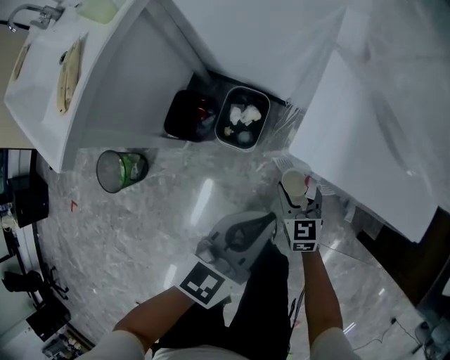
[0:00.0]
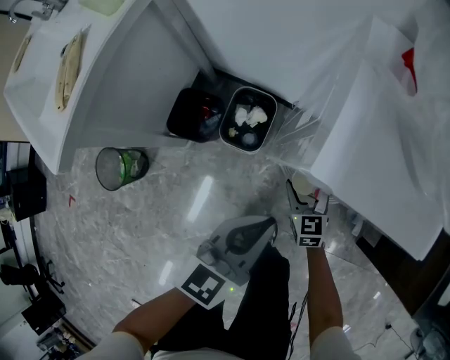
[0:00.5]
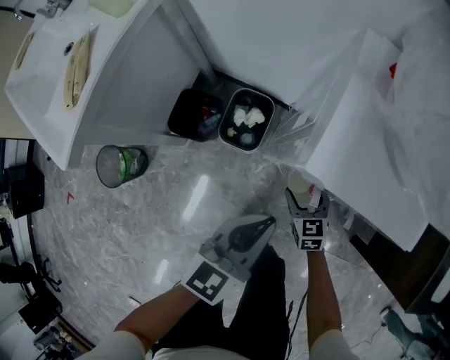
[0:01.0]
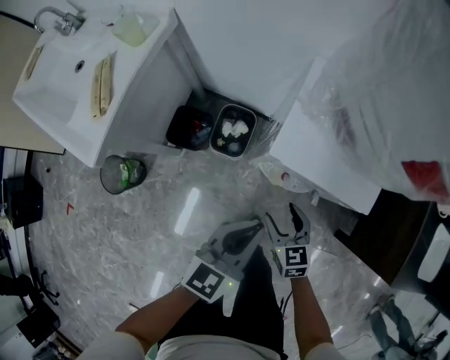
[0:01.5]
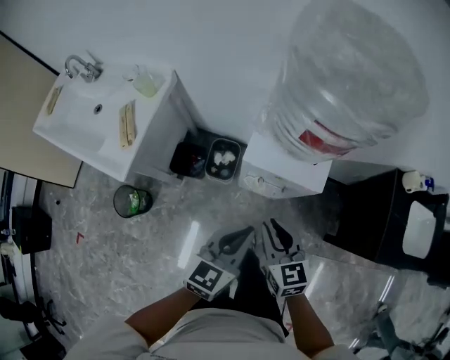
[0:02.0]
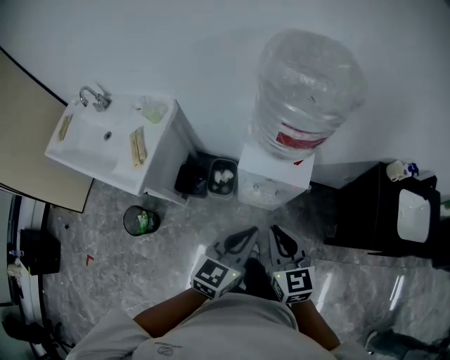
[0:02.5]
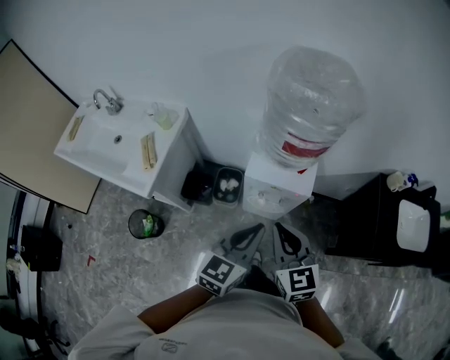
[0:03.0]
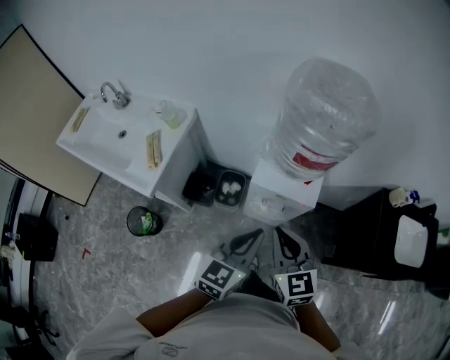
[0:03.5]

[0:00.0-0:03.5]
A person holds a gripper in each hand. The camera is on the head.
0:00.0 to 0:02.0: The right gripper heads upward, covering roughly 40 cm, and closes its fingers. The left gripper moves upward, some 25 cm.
0:02.0 to 0:03.5: Both grippers move upward, approximately 15 cm.

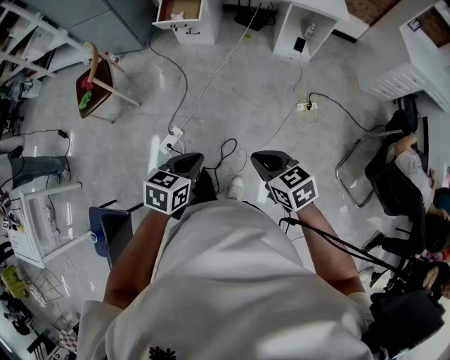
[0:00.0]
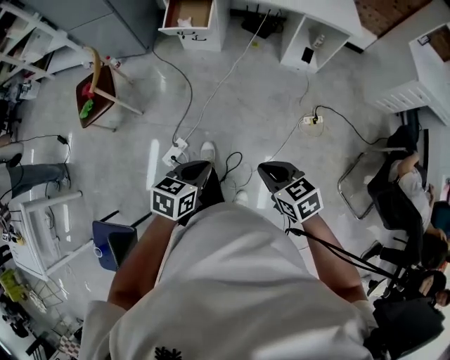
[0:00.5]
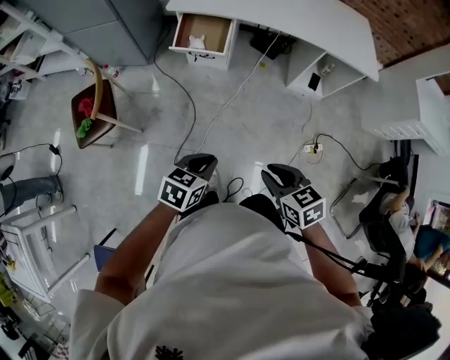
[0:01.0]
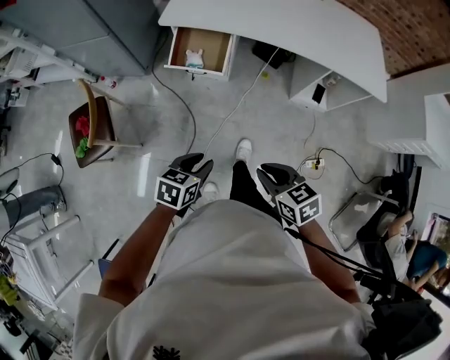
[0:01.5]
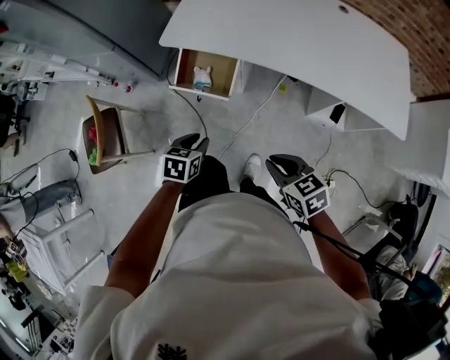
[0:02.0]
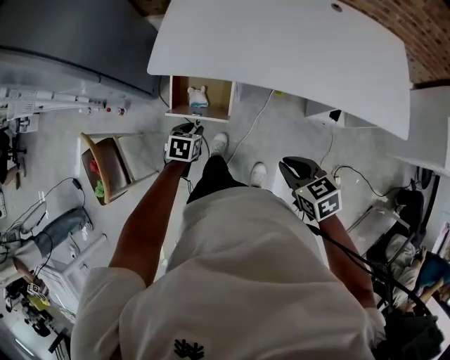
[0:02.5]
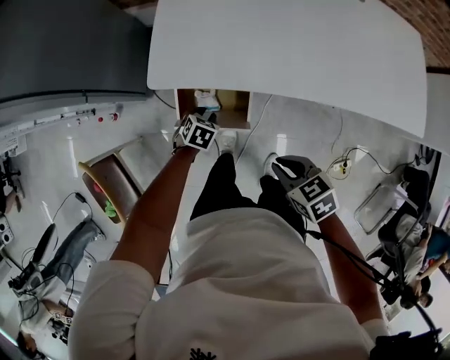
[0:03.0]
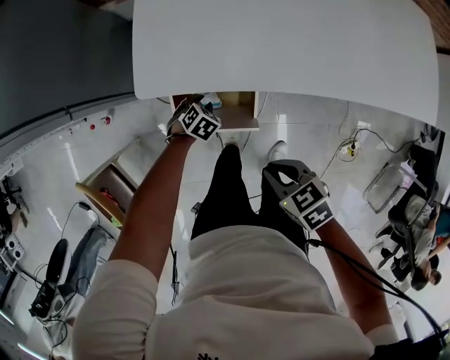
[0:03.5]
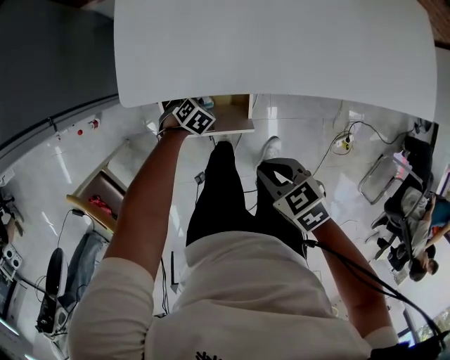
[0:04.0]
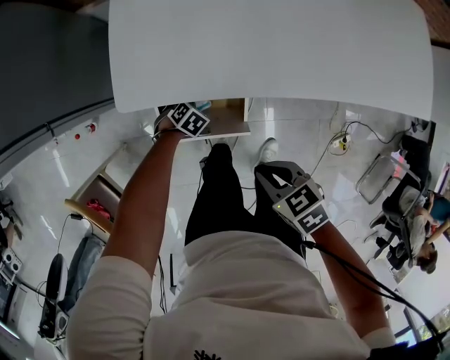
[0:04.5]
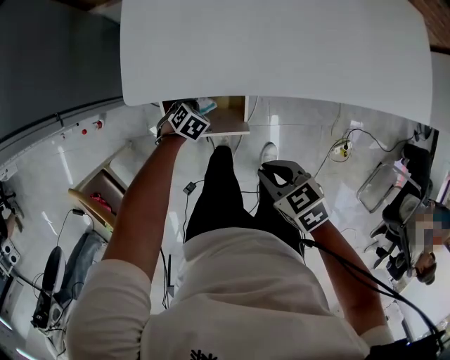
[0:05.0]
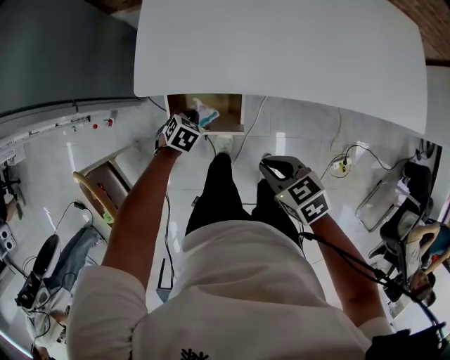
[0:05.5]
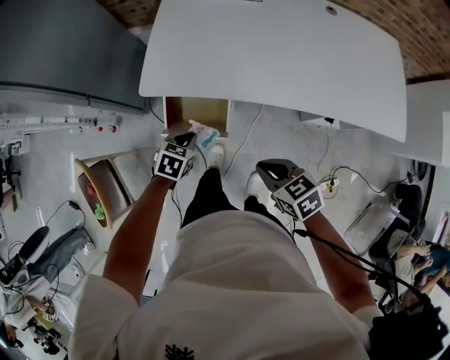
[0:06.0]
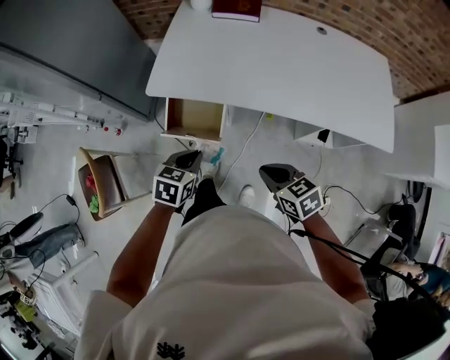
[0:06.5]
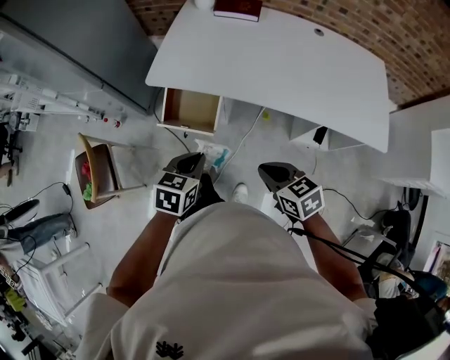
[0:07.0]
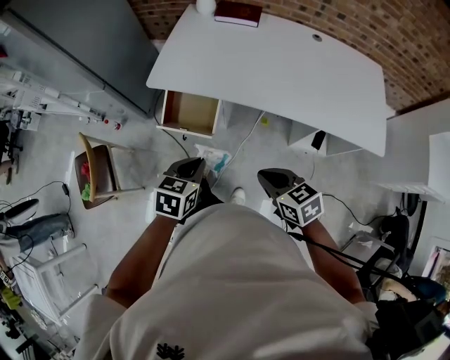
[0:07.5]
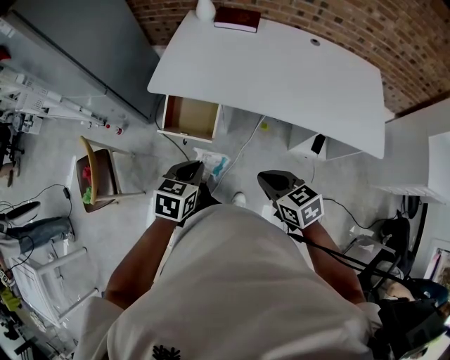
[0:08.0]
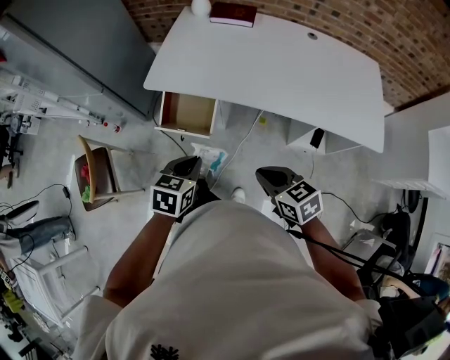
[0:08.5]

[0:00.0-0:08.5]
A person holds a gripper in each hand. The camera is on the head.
0:00.0 to 0:02.0: The pair of grippers is taken forward, about 70 cm. The left gripper opens its fingers.
0:02.0 to 0:04.0: The left gripper moves roughly 50 cm, and rotates around the line of its fingers by roughly 50 degrees, clockwise from behind. The right gripper ends up some 35 cm from where it was, and changes its angle by roughly 20 degrees.
0:04.0 to 0:06.5: The right gripper changes place by approximately 30 cm, and turns by some 20 degrees, while the left gripper travels upward by about 40 cm, turns by roughly 40 degrees, and closes.
0:06.5 to 0:08.5: The left gripper is displaced backward and upward by some 10 cm; the right gripper moves backward, about 10 cm.

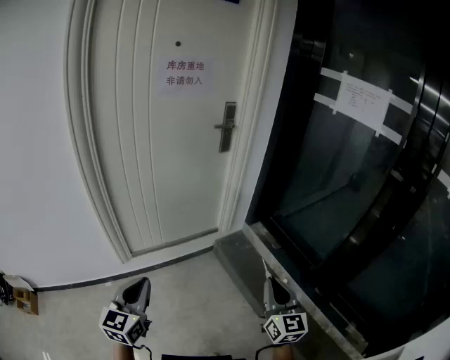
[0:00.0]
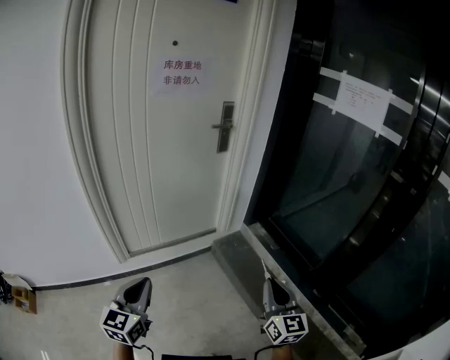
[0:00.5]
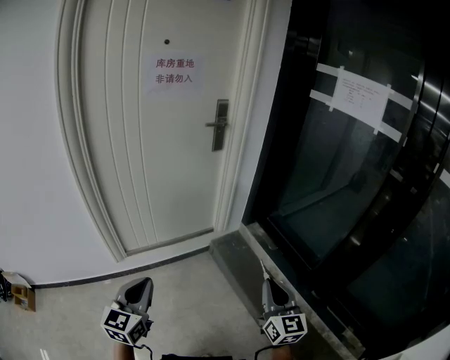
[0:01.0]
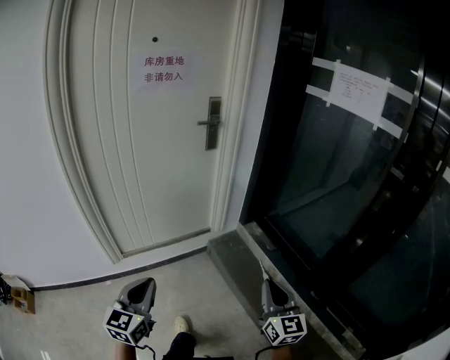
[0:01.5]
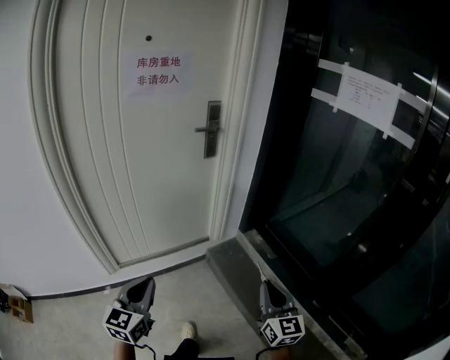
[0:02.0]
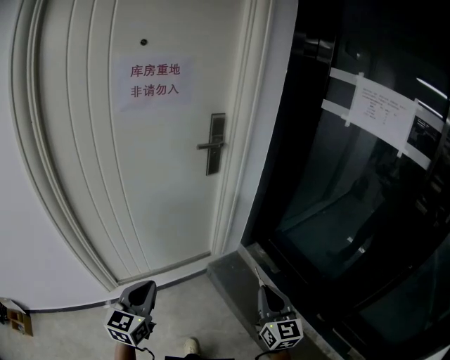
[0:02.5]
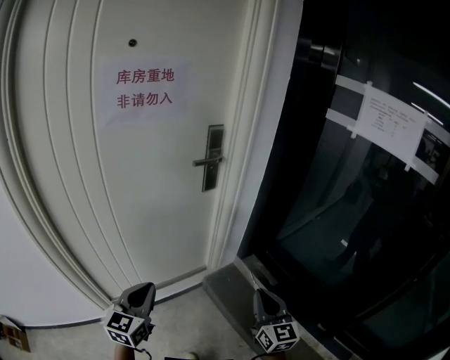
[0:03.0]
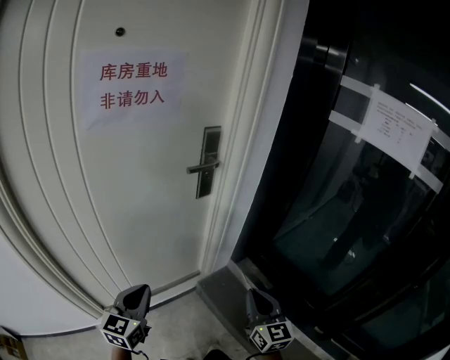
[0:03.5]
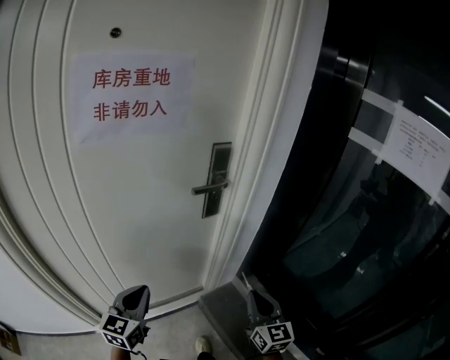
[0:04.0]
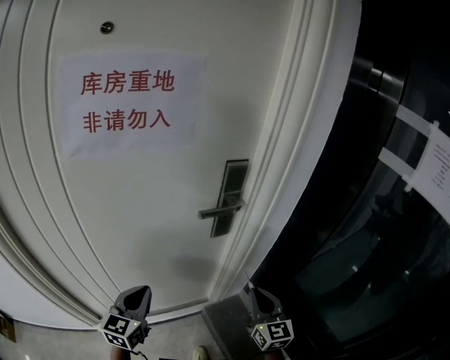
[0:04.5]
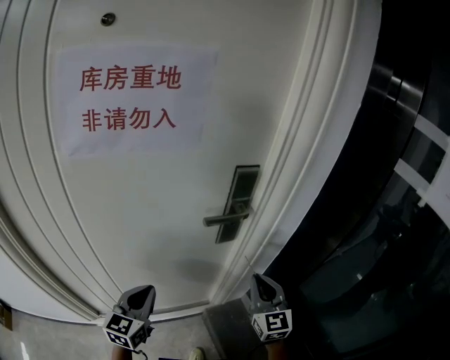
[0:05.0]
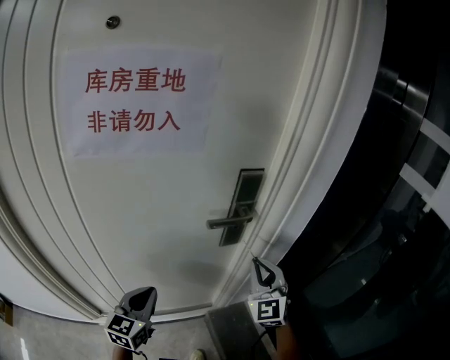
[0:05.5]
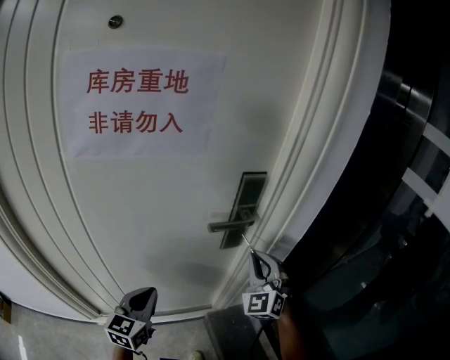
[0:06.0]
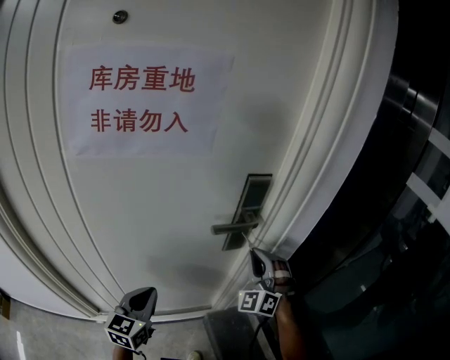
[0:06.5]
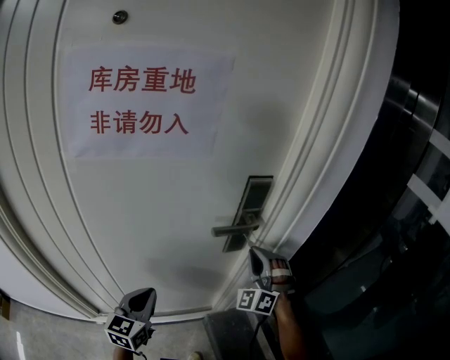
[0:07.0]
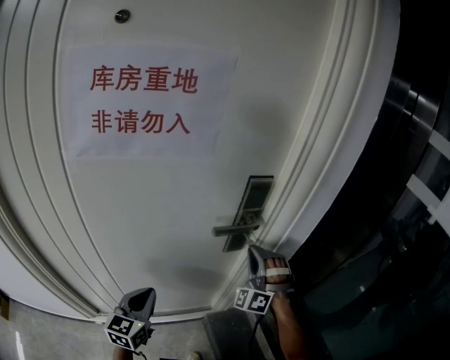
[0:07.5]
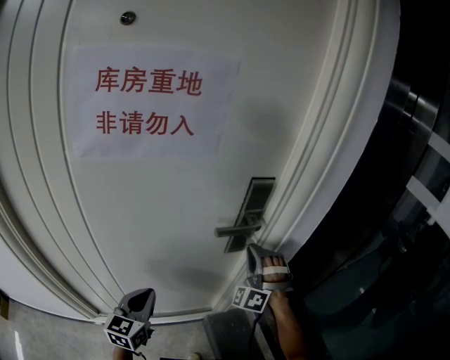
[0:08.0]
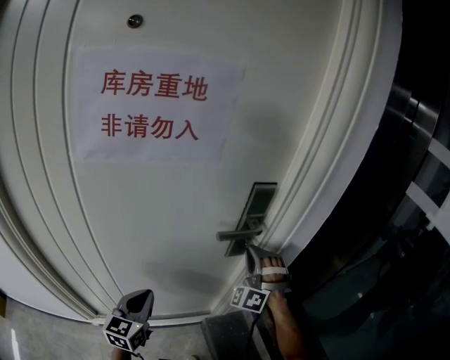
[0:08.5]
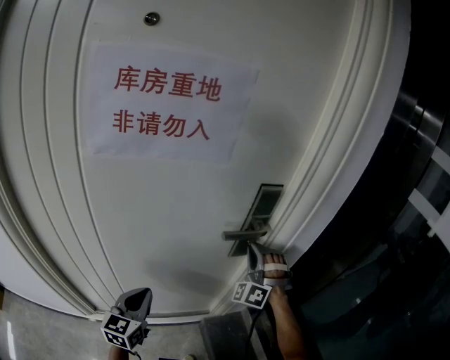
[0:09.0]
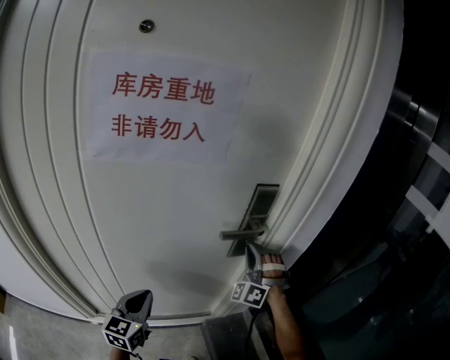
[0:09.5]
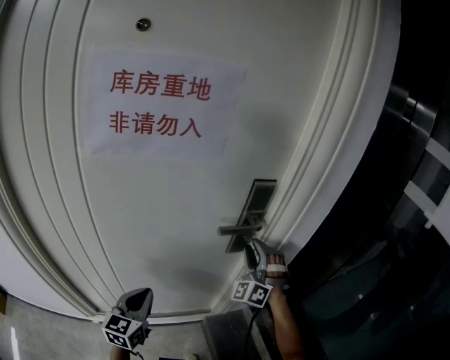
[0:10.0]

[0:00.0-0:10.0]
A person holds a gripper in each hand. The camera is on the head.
0:00.0 to 0:02.0: Both grippers travel together forward and to the right, some 15 cm.
0:02.0 to 0:04.0: The two grippers go roughly 35 cm forward.
0:04.0 to 0:06.0: The right gripper travels forward by some 25 cm, and rotates around the line of its fingers by approximately 50 degrees, counterclockwise from behind; the left gripper travels forward by approximately 10 cm.
0:06.0 to 0:08.0: The right gripper moves about 5 cm, and swivels some 40 degrees.
0:08.0 to 0:10.0: The right gripper opens.

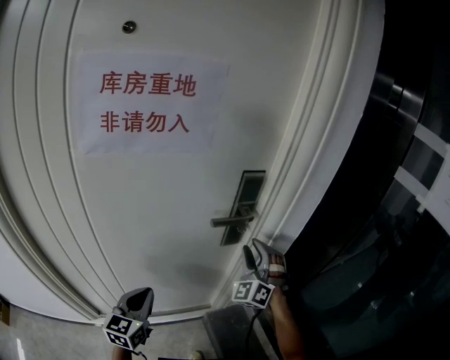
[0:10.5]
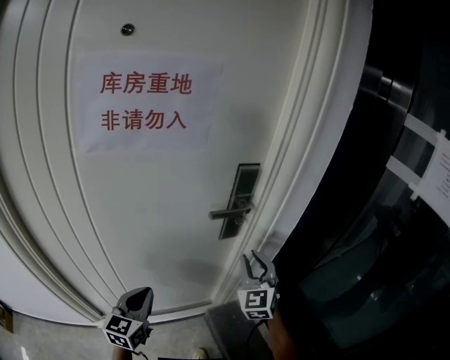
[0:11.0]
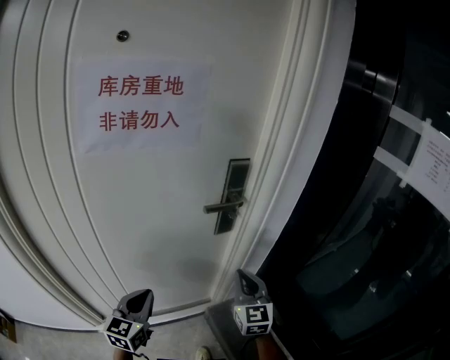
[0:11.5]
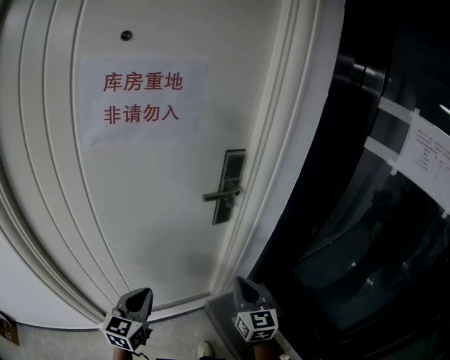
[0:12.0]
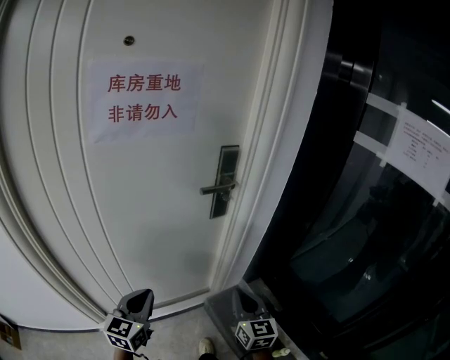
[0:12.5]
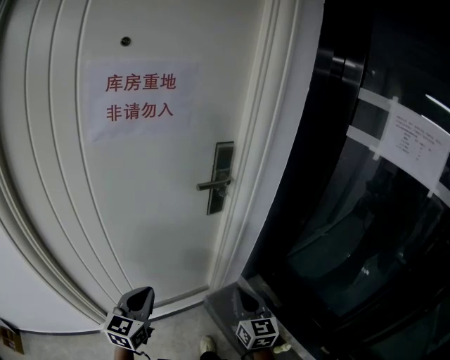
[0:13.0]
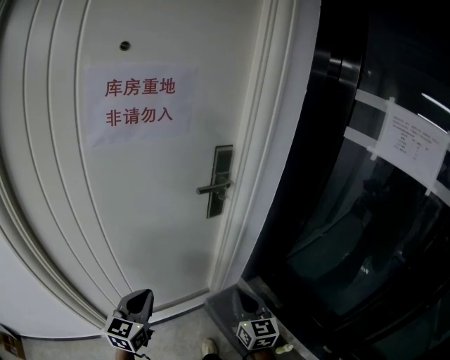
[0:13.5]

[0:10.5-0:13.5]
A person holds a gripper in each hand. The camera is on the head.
0:10.5 to 0:12.0: The right gripper travels backward by about 20 cm, twists approximately 70 degrees clockwise, seen from behind, and closes. The left gripper goes some 10 cm backward.
0:12.0 to 0:13.5: The right gripper moves backward, about 10 cm.

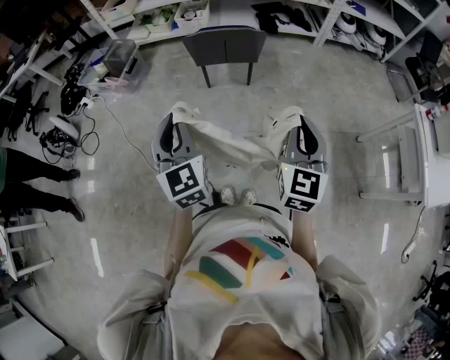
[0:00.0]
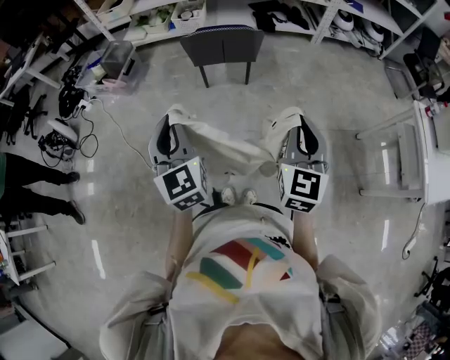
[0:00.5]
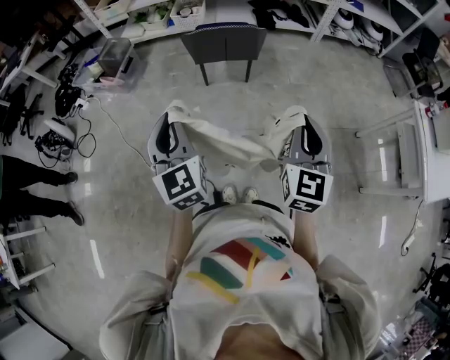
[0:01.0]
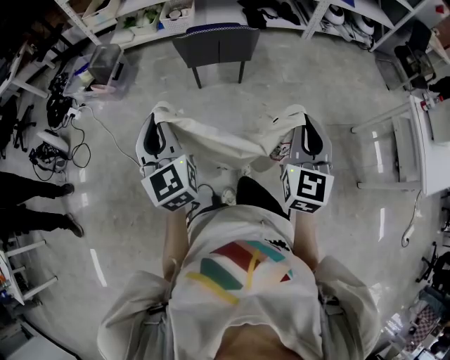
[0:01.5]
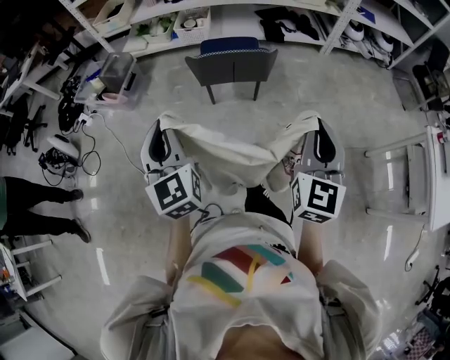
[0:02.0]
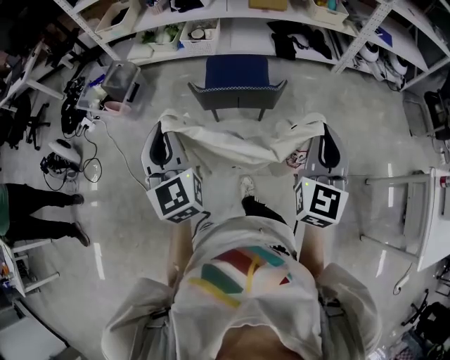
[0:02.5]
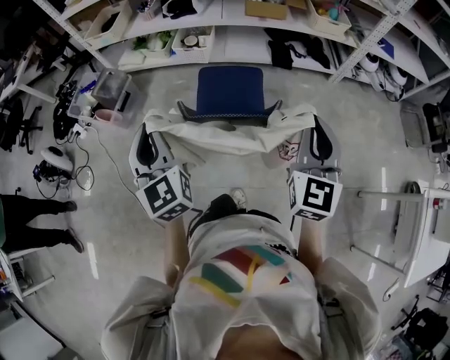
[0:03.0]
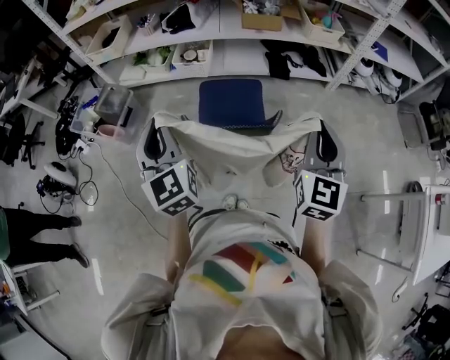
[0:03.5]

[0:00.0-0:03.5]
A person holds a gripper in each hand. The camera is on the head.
0:00.0 to 0:02.0: Both grippers move forward, some 15 cm.
0:02.0 to 0:03.5: Both grippers travel together forward, approximately 30 cm.
